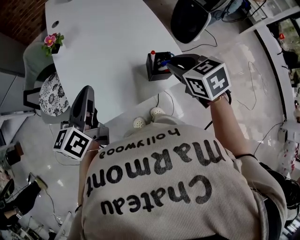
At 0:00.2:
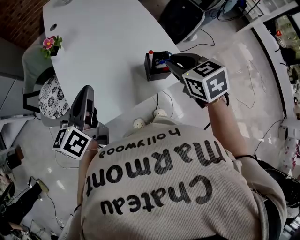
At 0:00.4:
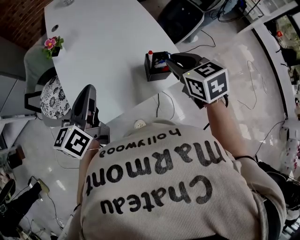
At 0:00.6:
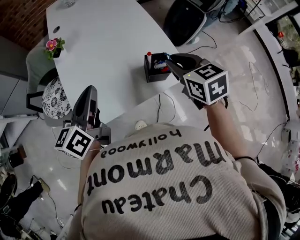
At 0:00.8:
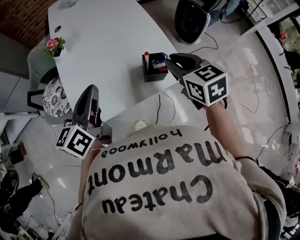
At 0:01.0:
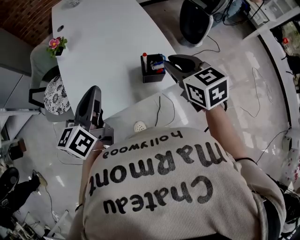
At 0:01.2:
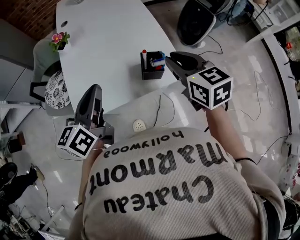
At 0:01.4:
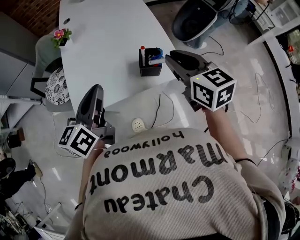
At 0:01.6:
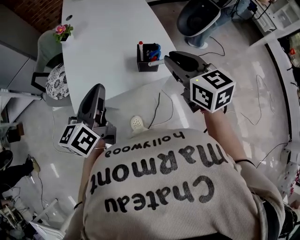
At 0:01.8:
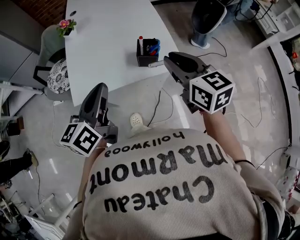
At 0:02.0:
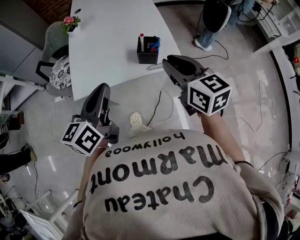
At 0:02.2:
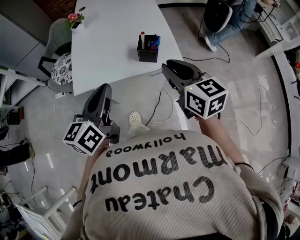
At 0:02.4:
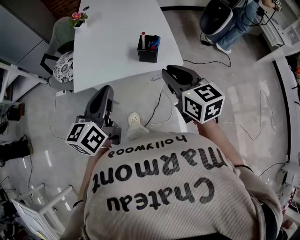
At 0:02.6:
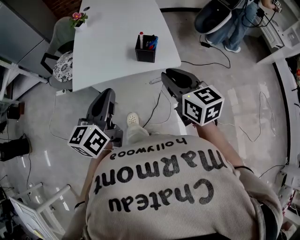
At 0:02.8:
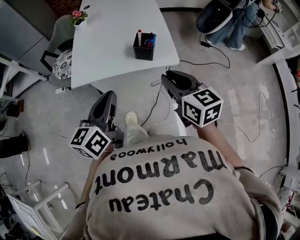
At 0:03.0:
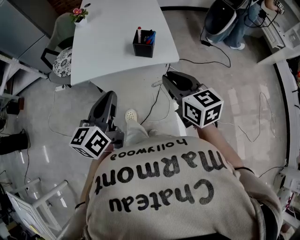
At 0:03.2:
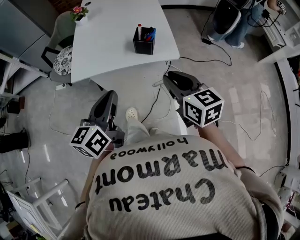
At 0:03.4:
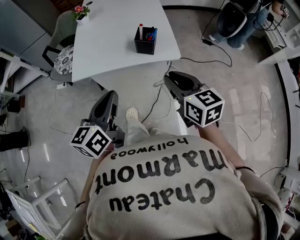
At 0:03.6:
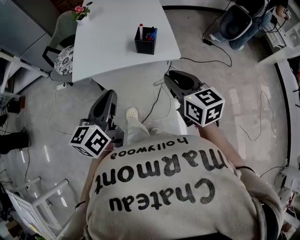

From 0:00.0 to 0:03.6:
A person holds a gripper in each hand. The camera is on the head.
From 0:00.0 to 0:01.8: The left gripper shifts about 15 cm backward and to the right; the right gripper heads backward and upward, covering about 10 cm, and turns by some 30 degrees.
From 0:01.8 to 0:03.6: The left gripper moves backward, about 15 cm. Meanwhile the right gripper heads backward and downward, covering about 15 cm.

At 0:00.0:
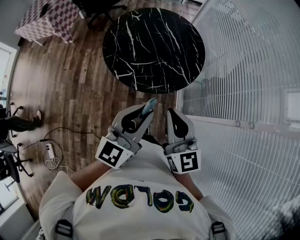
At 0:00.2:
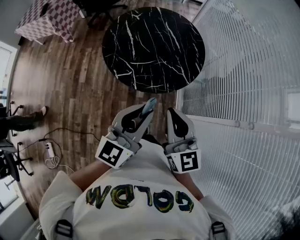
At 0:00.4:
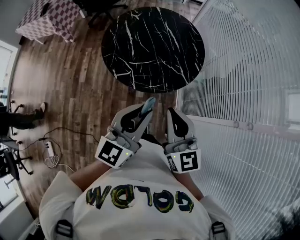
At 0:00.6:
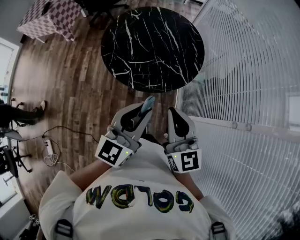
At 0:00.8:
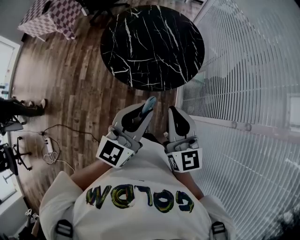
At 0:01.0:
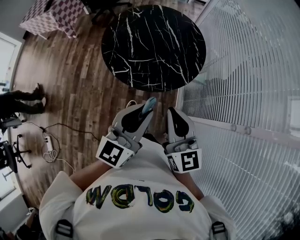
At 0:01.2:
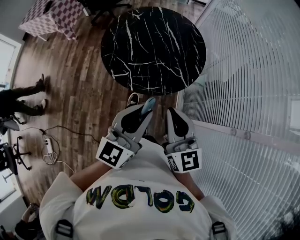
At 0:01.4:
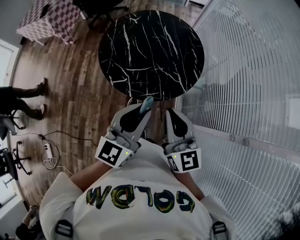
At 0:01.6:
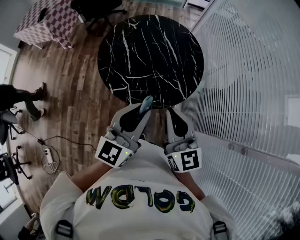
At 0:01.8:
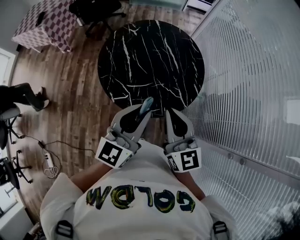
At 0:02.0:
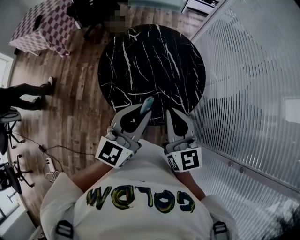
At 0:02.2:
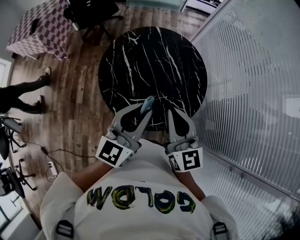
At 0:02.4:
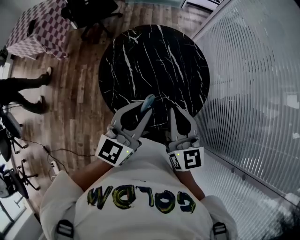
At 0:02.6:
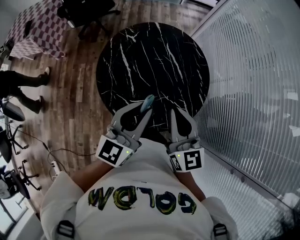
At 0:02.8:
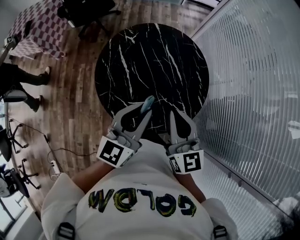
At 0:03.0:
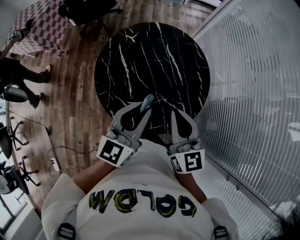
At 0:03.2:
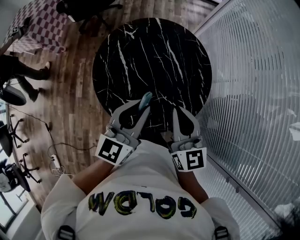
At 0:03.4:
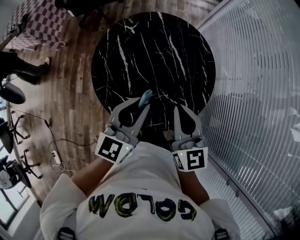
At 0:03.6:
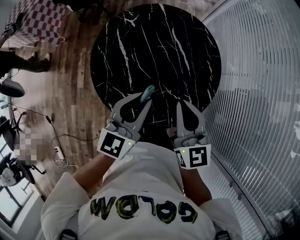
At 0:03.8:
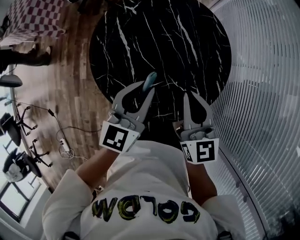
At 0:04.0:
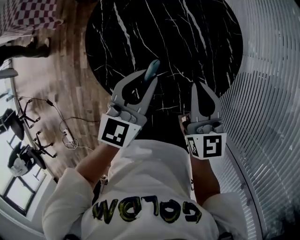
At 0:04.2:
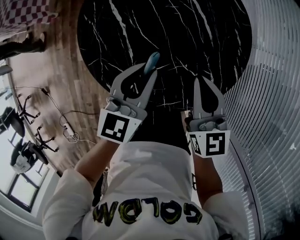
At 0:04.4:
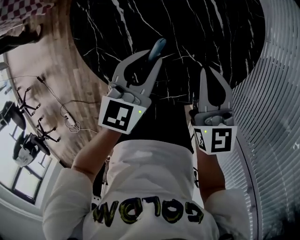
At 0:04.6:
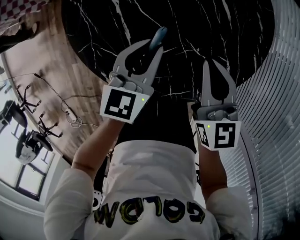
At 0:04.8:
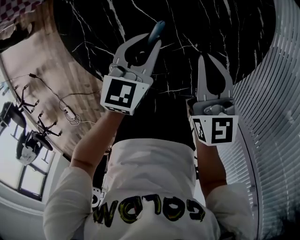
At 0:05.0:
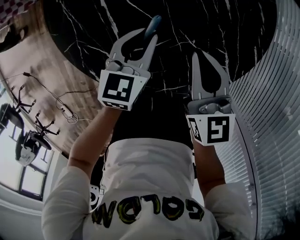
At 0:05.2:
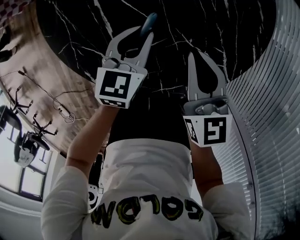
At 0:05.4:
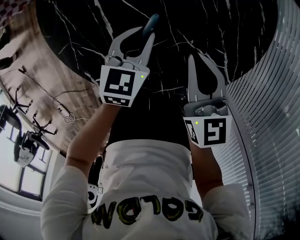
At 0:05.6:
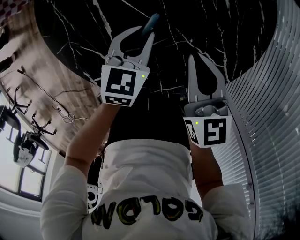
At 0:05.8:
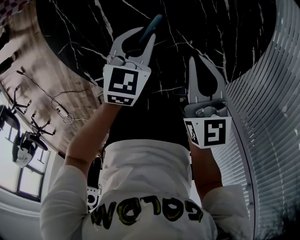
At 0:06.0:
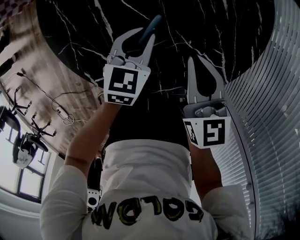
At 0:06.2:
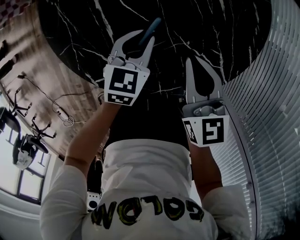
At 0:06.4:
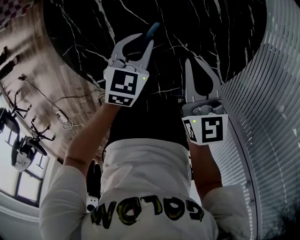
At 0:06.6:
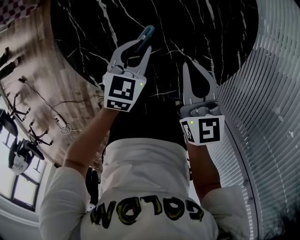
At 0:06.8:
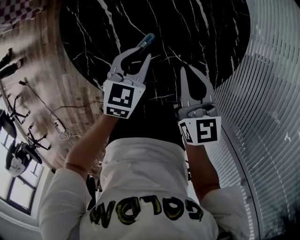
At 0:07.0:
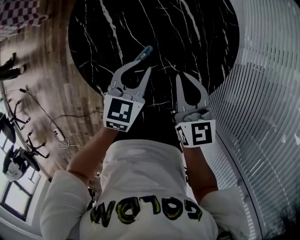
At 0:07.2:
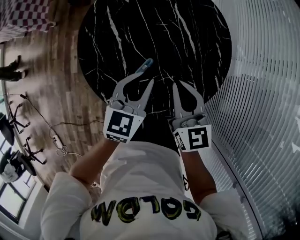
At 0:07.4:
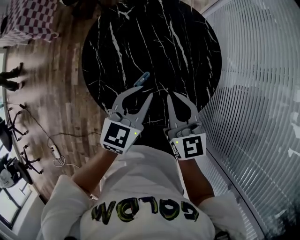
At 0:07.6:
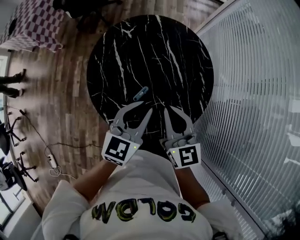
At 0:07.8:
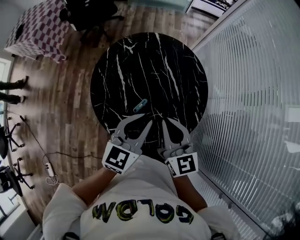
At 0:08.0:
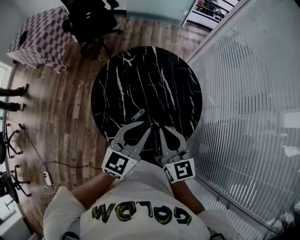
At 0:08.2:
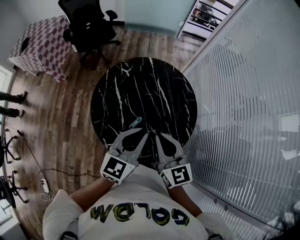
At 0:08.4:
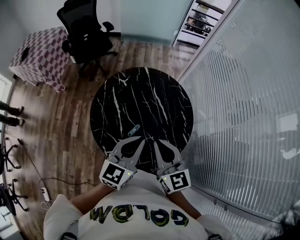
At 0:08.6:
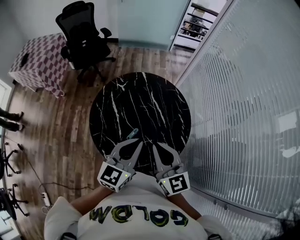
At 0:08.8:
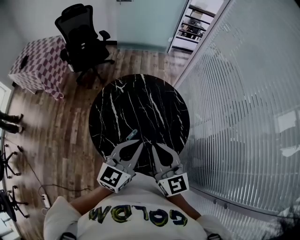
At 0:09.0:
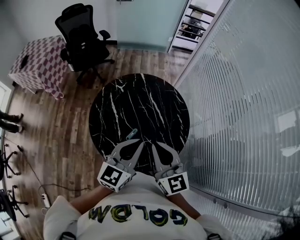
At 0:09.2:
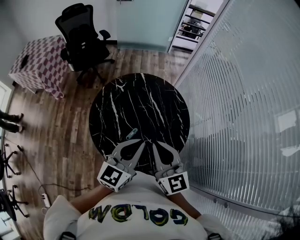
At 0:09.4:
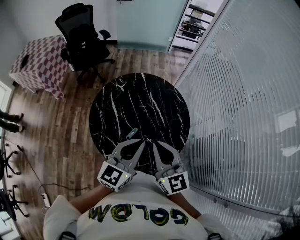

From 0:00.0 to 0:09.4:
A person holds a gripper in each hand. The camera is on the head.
From 0:00.0 to 0:01.6: Both grippers travel together forward, roughly 10 cm.
From 0:01.6 to 0:03.2: Both grippers move forward, about 20 cm.
From 0:03.2 to 0:04.8: The grippers both shift downward by about 30 cm. The left gripper turns by approximately 30 degrees.
From 0:04.8 to 0:06.2: The left gripper shifts approximately 5 cm downward.
From 0:06.2 to 0:07.8: The grippers both shift upward by roughly 30 cm. The left gripper turns by about 30 degrees. Meanwhile the right gripper changes its angle by roughly 20 degrees.
From 0:07.8 to 0:09.4: The two grippers go about 10 cm upward and backward.

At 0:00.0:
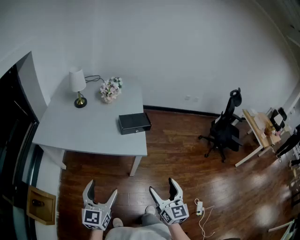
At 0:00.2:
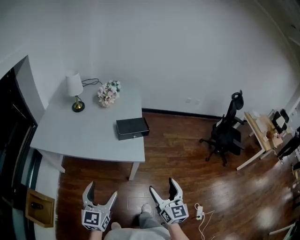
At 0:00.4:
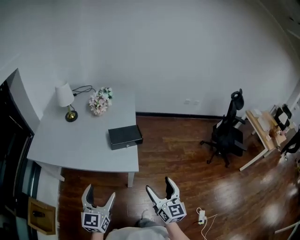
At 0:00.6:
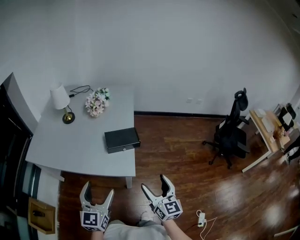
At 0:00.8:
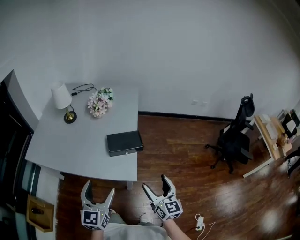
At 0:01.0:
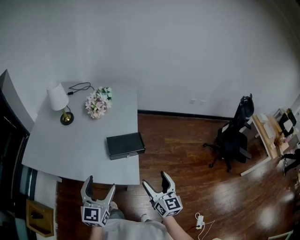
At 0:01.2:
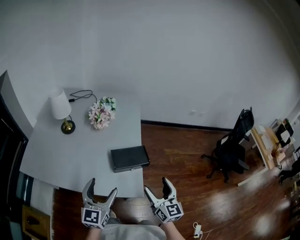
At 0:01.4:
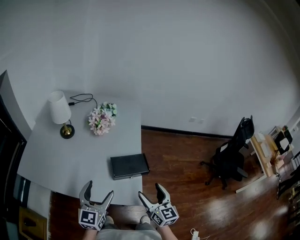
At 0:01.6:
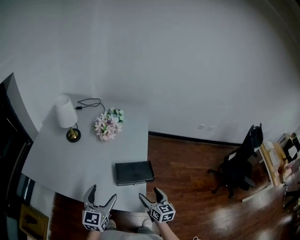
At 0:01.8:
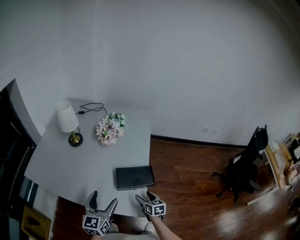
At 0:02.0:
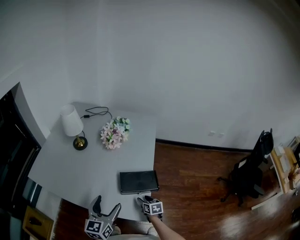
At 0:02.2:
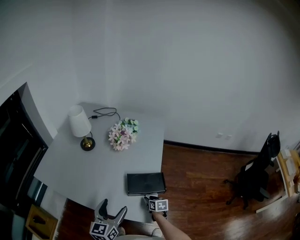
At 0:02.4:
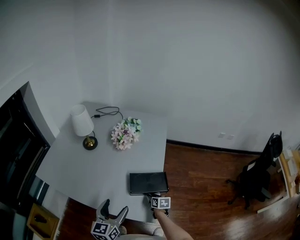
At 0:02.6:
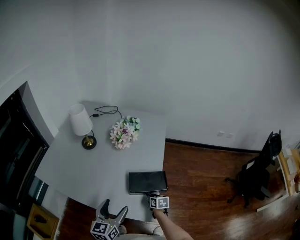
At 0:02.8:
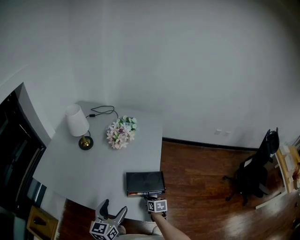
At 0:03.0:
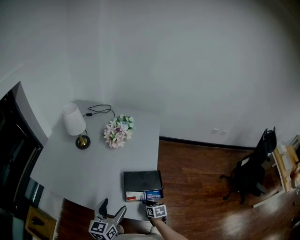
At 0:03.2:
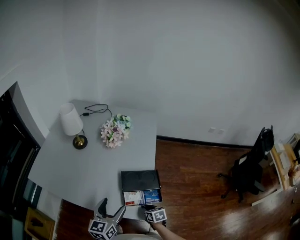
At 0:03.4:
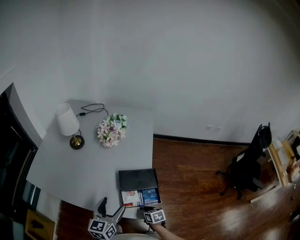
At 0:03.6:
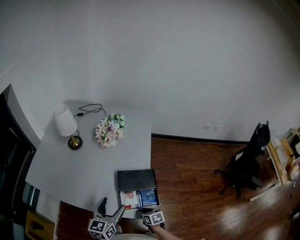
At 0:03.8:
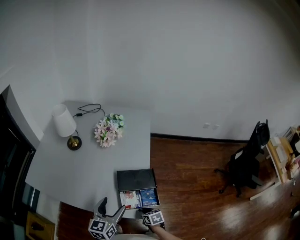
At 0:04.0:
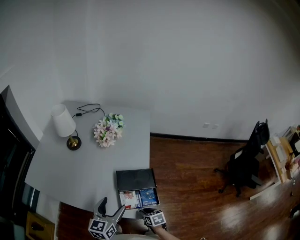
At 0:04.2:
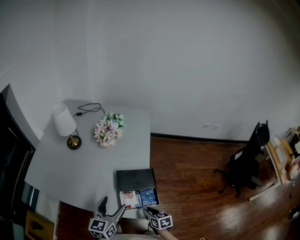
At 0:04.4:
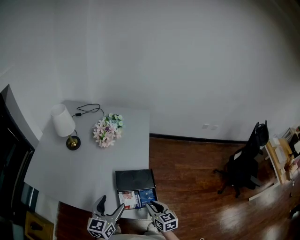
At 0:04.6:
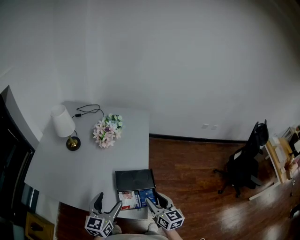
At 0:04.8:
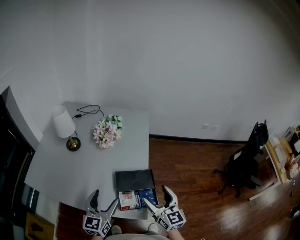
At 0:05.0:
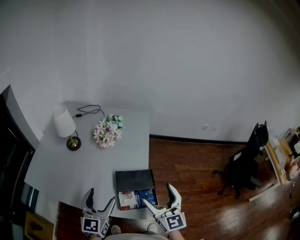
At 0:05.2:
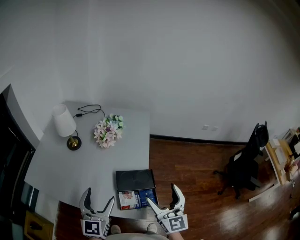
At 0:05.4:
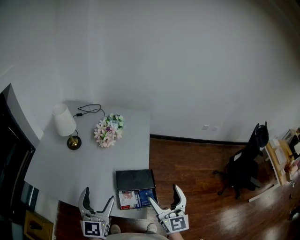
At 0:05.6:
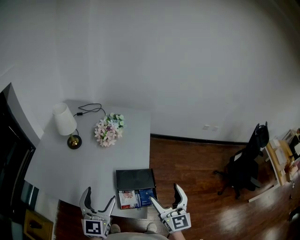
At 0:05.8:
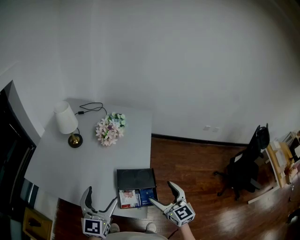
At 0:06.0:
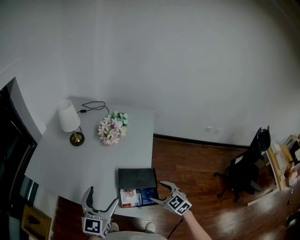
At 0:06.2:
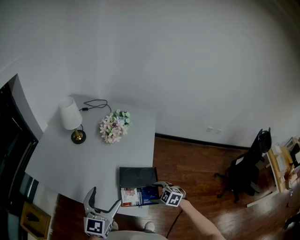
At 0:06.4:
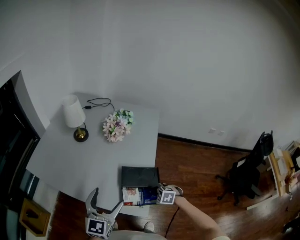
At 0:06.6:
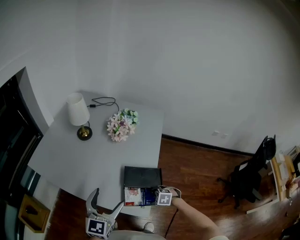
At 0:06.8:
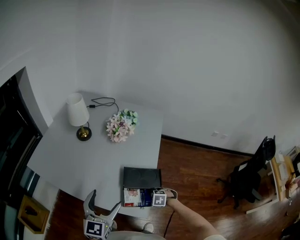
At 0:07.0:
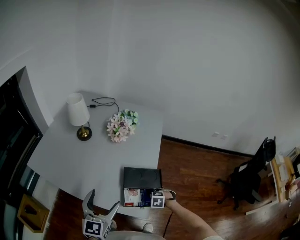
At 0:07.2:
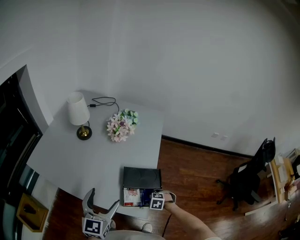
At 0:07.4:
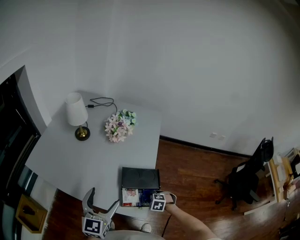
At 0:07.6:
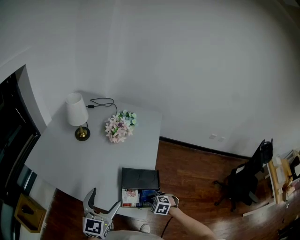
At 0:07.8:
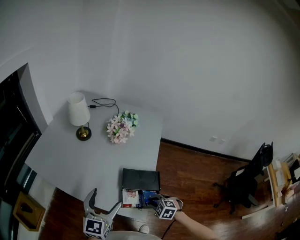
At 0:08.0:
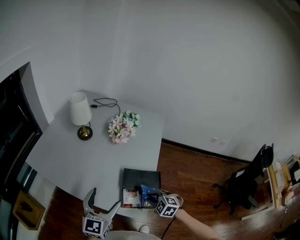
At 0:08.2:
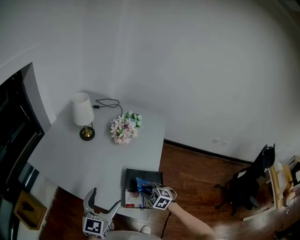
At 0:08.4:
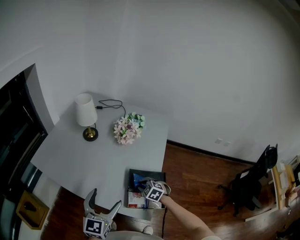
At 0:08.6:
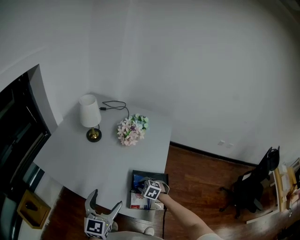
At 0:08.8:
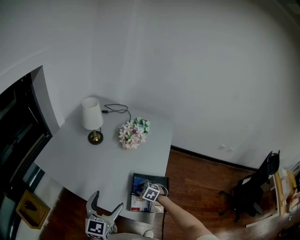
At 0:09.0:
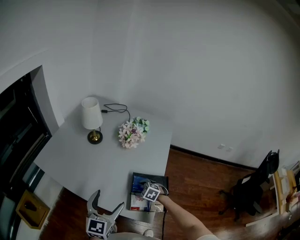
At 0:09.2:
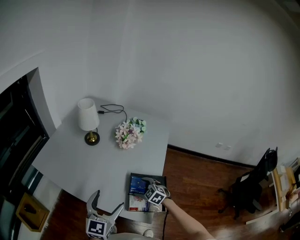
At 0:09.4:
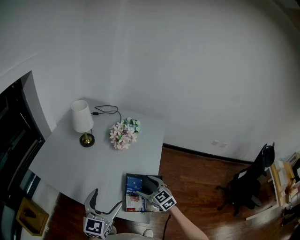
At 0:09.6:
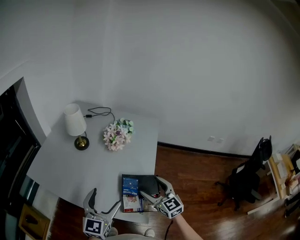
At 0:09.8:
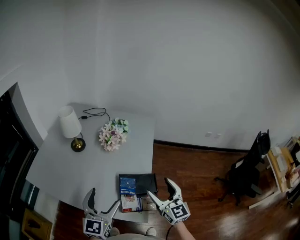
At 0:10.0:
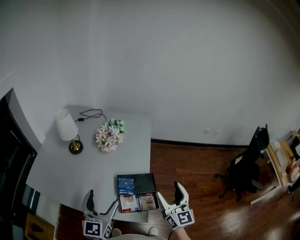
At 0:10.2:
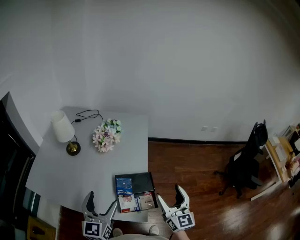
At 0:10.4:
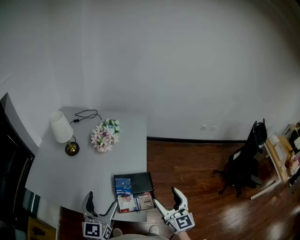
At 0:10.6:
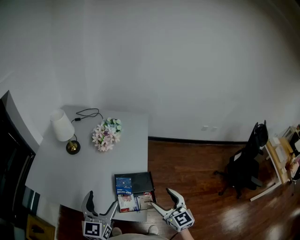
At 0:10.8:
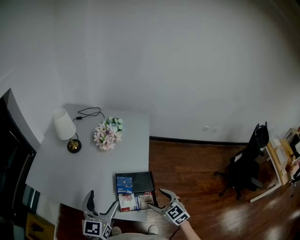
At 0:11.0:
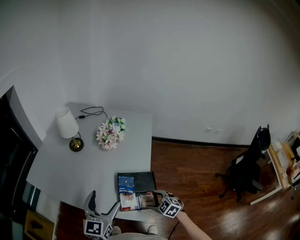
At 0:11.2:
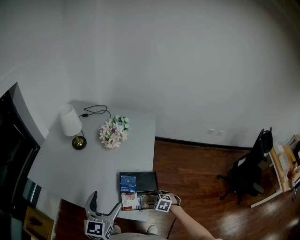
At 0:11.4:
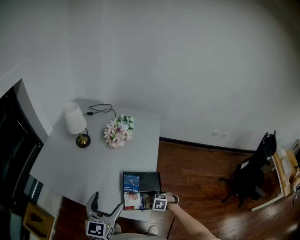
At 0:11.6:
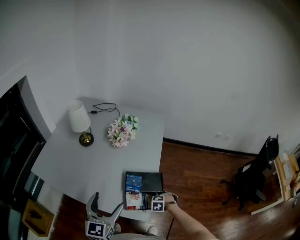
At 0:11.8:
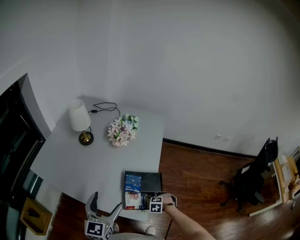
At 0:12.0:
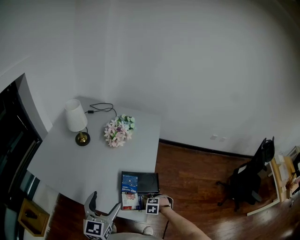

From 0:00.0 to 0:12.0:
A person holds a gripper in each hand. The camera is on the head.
From 0:00.0 to 0:01.6: The two grippers go about 35 cm forward. The right gripper swivels about 20 degrees.
From 0:01.6 to 0:03.0: The right gripper is displaced downward by approximately 20 cm, changes its angle by about 30 degrees, and closes.
From 0:03.0 to 0:04.4: The right gripper shifts about 15 cm upward, and changes its angle by some 20 degrees.
From 0:04.4 to 0:06.0: The right gripper goes upward and returns, approximately 20 cm each way, rotates approximately 40 degrees, and opens up, while the left gripper is displaced upward by some 10 cm.
From 0:06.0 to 0:07.6: The right gripper travels downward by some 15 cm, points its fingers approximately 30 degrees further downward, and closes its fingers.
From 0:07.6 to 0:09.0: The right gripper is displaced forward and to the left by some 15 cm, and opens its fingers.
From 0:09.0 to 0:10.4: The right gripper goes about 25 cm upward, and tips its fingers upward by about 60 degrees. The left gripper shifts by roughly 5 cm.
From 0:10.4 to 0:12.0: The right gripper moves downward, roughly 35 cm, tips its fingers downward by roughly 80 degrees, and closes.
